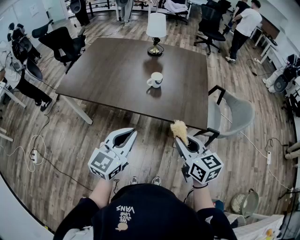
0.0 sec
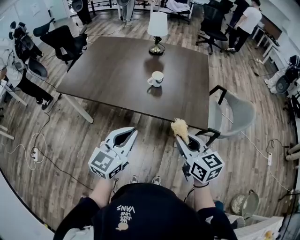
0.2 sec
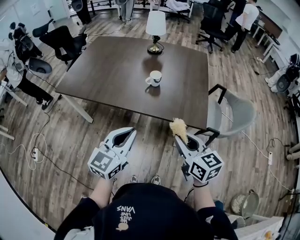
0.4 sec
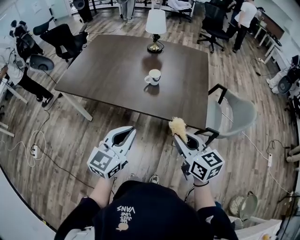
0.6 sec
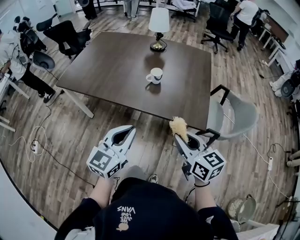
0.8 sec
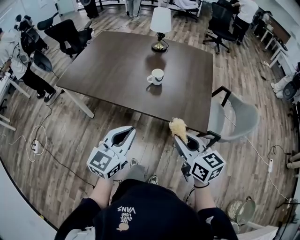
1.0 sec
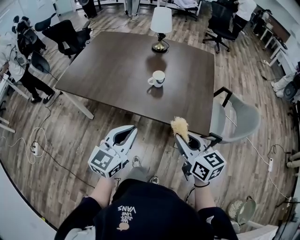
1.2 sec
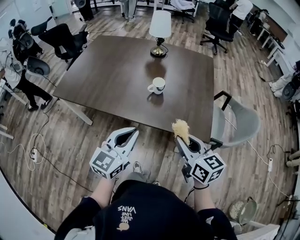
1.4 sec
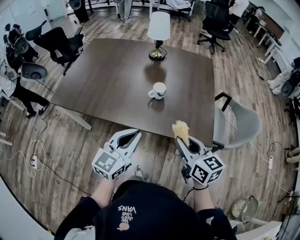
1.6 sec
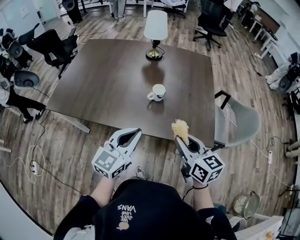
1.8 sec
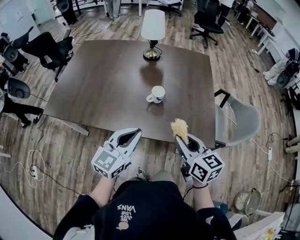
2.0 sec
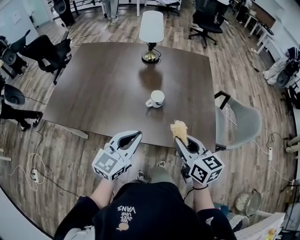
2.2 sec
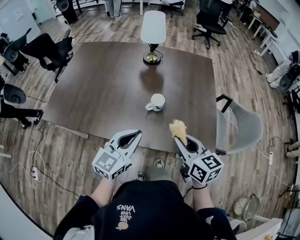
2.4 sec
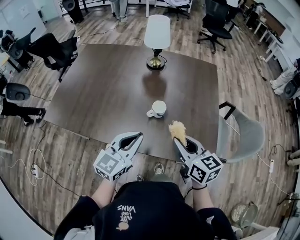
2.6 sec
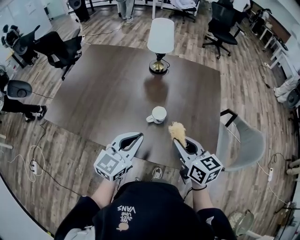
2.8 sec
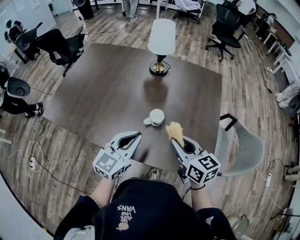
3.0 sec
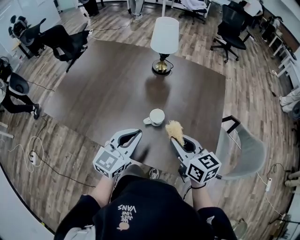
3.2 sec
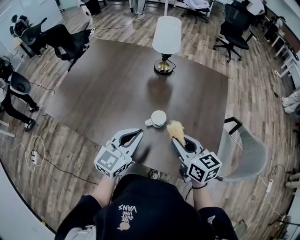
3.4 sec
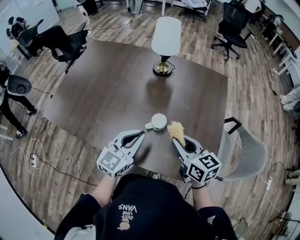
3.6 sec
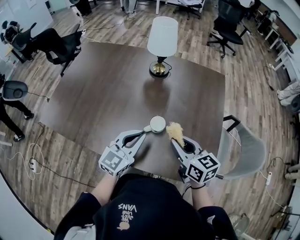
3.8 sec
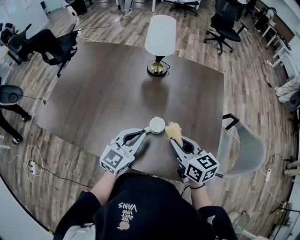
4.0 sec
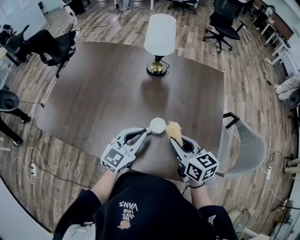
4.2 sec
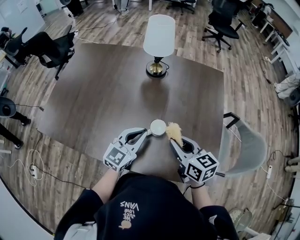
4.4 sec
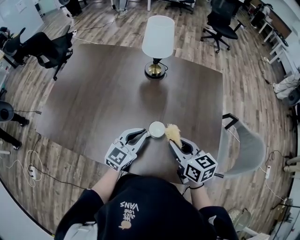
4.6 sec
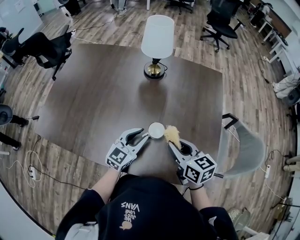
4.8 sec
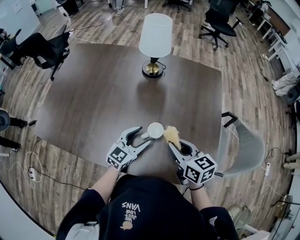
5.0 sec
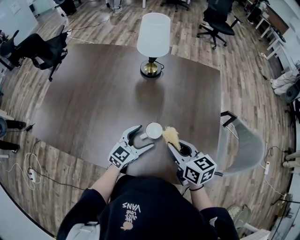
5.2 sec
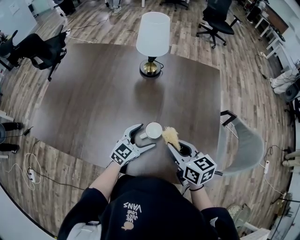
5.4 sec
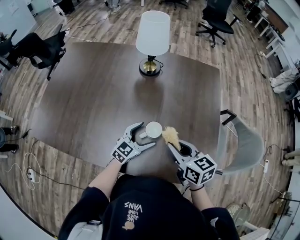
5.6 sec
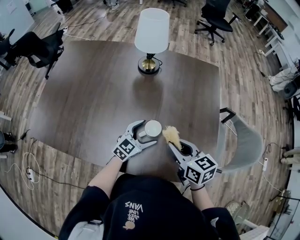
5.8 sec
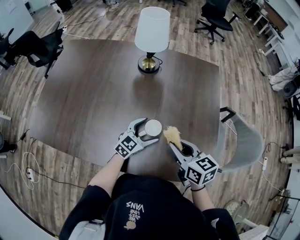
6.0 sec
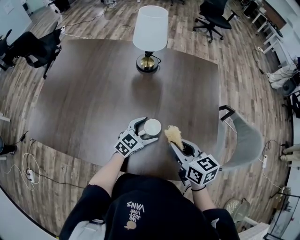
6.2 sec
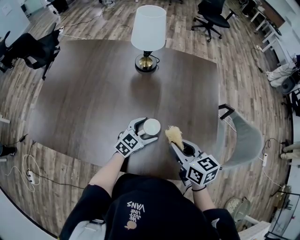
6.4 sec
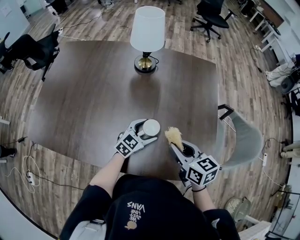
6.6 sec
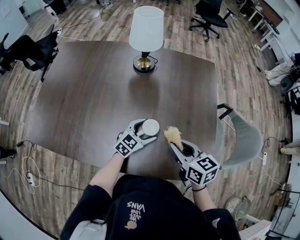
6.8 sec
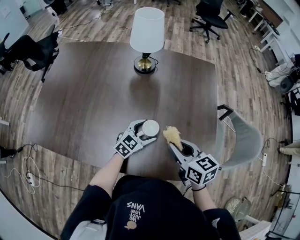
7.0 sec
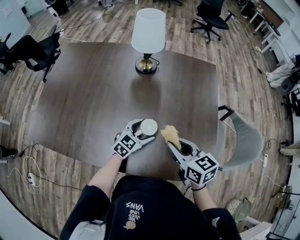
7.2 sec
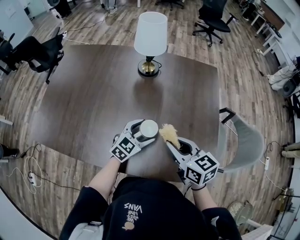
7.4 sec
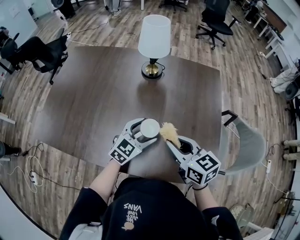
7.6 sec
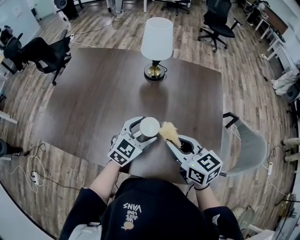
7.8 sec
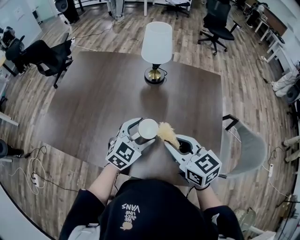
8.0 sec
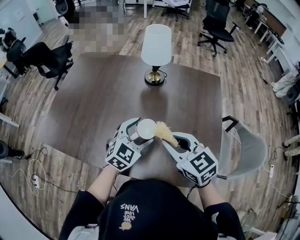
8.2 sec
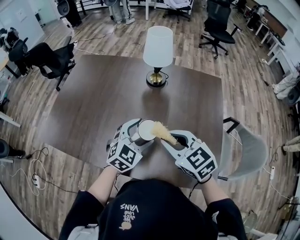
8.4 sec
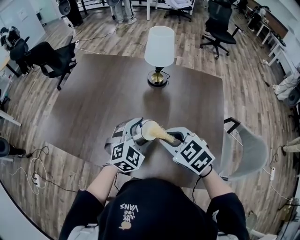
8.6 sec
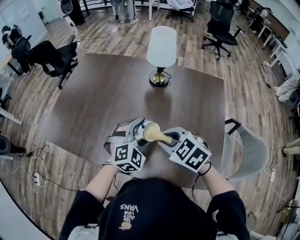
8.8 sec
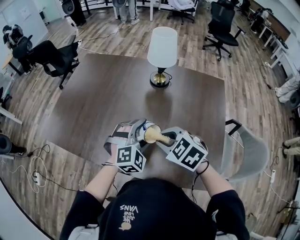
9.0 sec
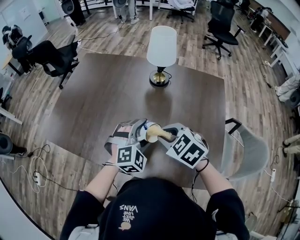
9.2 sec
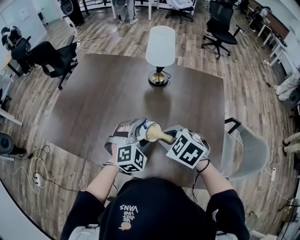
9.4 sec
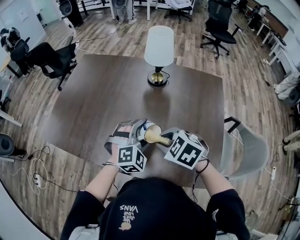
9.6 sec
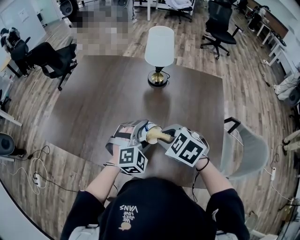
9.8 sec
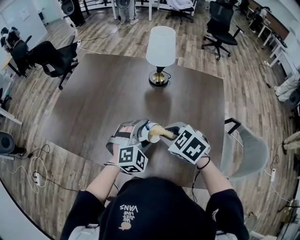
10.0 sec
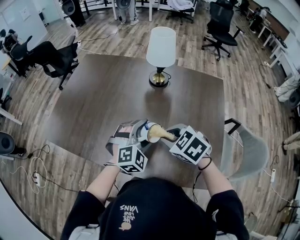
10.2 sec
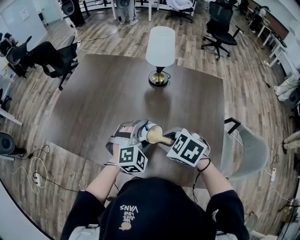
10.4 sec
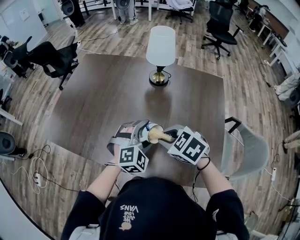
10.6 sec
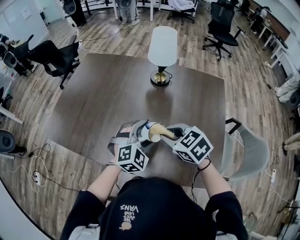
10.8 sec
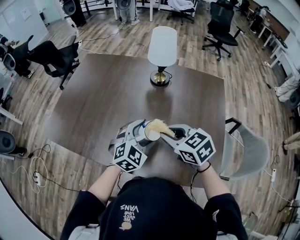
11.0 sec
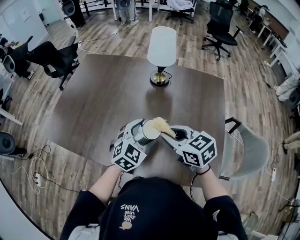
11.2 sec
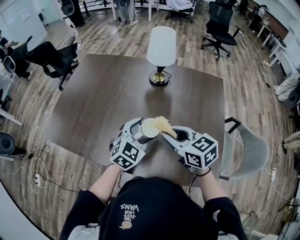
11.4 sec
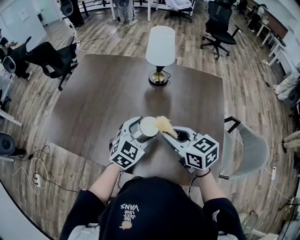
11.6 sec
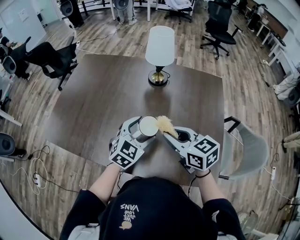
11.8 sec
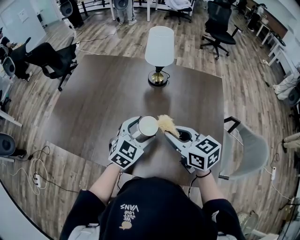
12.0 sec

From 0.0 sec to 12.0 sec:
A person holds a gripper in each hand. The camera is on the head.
From 0.0 sec to 1.6 sec: Both grippers move forward, about 15 cm.
From 1.6 sec to 3.0 sec: Both grippers travel together forward, about 20 cm.
From 3.0 sec to 4.4 sec: The left gripper shifts about 10 cm forward and downward. Meanwhile the right gripper goes roughly 10 cm forward.
From 4.4 sec to 6.0 sec: The left gripper shifts roughly 15 cm downward and to the right, and opens up.
From 6.0 sec to 7.6 sec: The right gripper travels upward by roughly 5 cm, while the left gripper goes some 10 cm upward.
From 7.6 sec to 9.0 sec: The right gripper moves to the left, roughly 5 cm, and rotates some 50 degrees. Meanwhile the left gripper ends up about 5 cm from where it was, and changes its angle by some 40 degrees.
From 9.0 sec to 10.4 sec: The grippers move only a little.
From 10.4 sec to 12.0 sec: The left gripper turns by about 30 degrees. Meanwhile the right gripper changes place by approximately 5 cm, and tips its fingers upward by roughly 30 degrees.

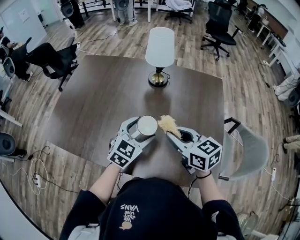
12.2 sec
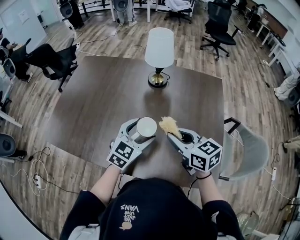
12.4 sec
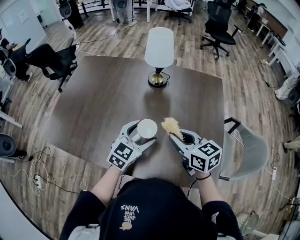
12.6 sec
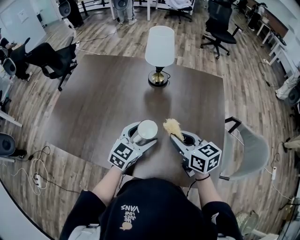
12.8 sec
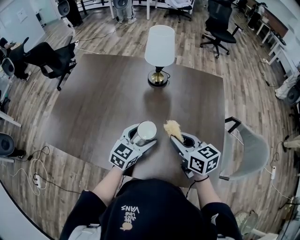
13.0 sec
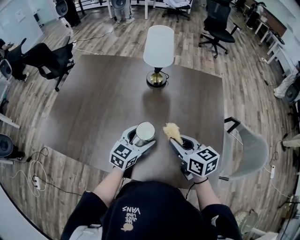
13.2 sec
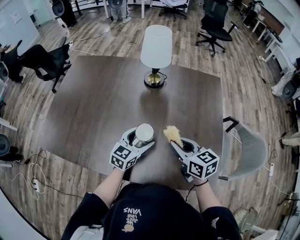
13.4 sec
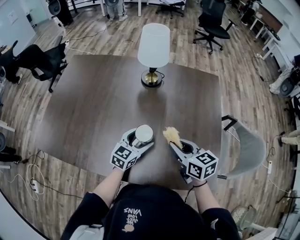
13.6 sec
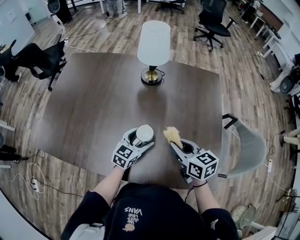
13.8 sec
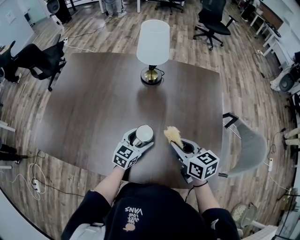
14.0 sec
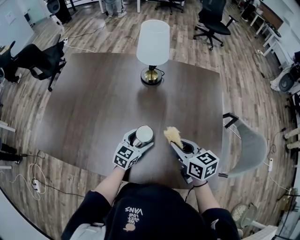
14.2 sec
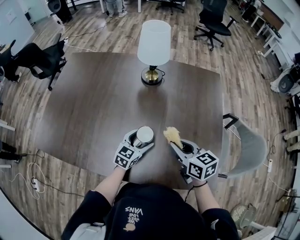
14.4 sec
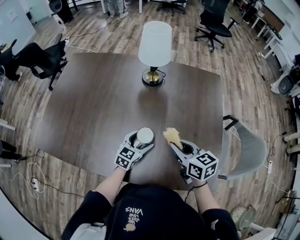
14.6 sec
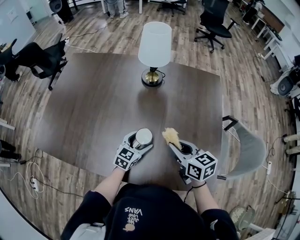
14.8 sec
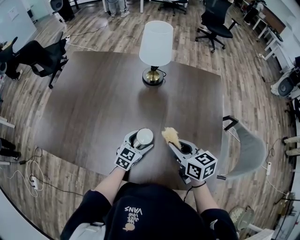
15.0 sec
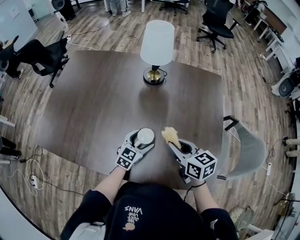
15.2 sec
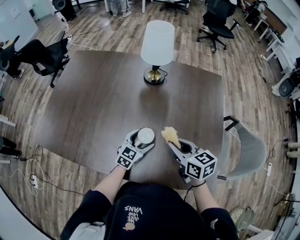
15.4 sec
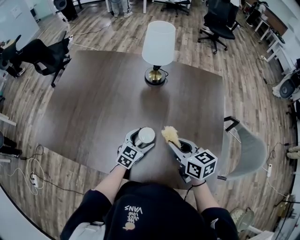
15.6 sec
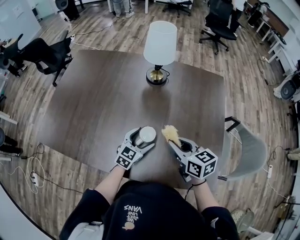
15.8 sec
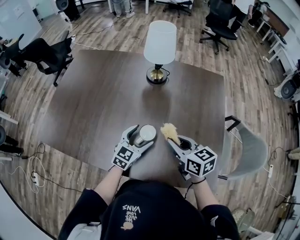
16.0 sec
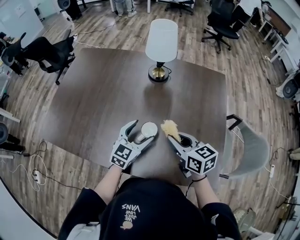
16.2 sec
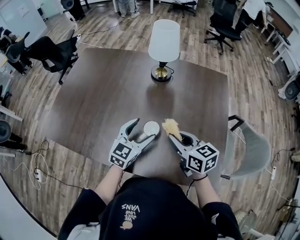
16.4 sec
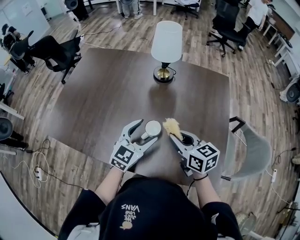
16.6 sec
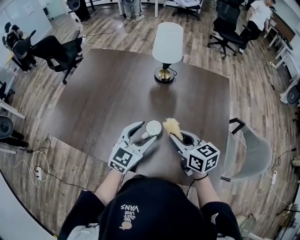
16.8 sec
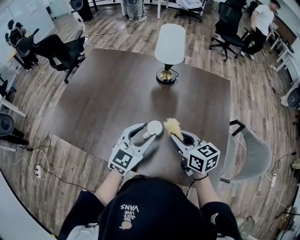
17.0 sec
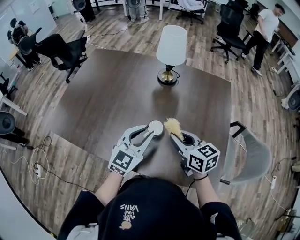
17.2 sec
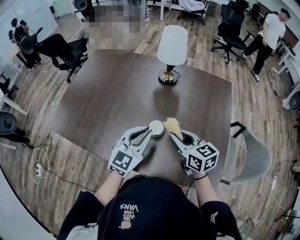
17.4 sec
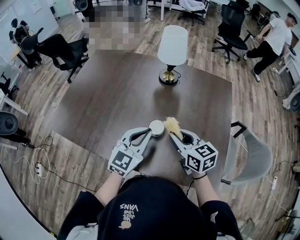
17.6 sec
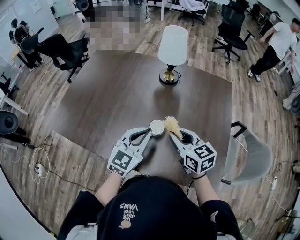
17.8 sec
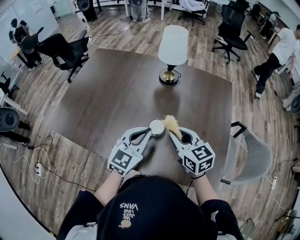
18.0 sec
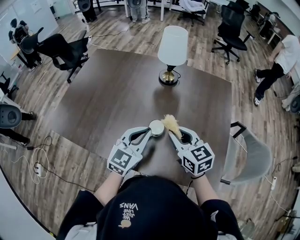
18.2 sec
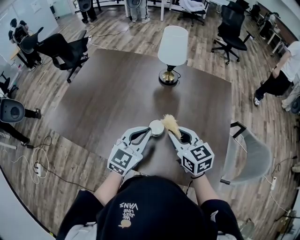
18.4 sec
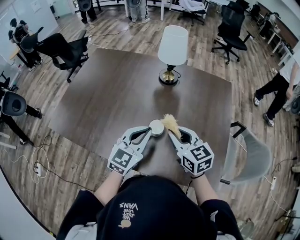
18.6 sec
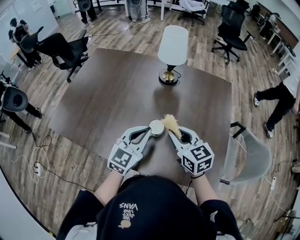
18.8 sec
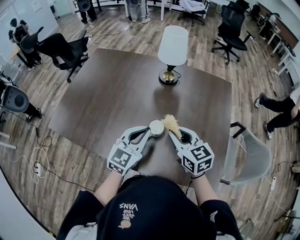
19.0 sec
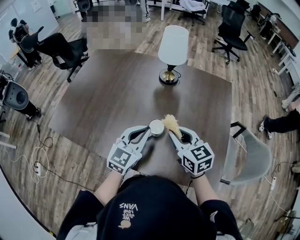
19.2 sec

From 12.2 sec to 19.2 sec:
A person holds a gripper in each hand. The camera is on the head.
From 12.2 sec to 13.6 sec: Both grippers travel together downward, about 10 cm. The left gripper turns by roughly 20 degrees.
From 13.6 sec to 15.0 sec: The left gripper moves downward, some 5 cm.
From 15.0 sec to 16.4 sec: The left gripper heads upward, covering roughly 10 cm.
From 16.4 sec to 17.8 sec: The left gripper travels upward by about 5 cm, and closes.
From 17.8 sec to 19.2 sec: The grippers move only a little.

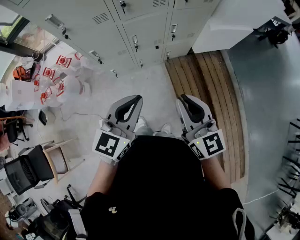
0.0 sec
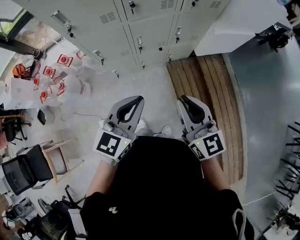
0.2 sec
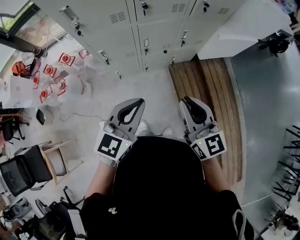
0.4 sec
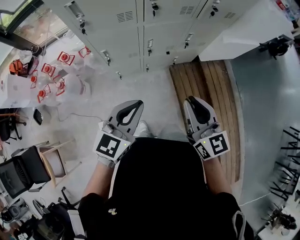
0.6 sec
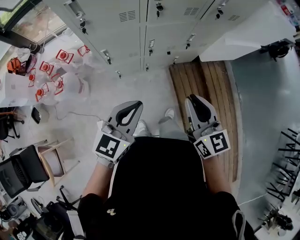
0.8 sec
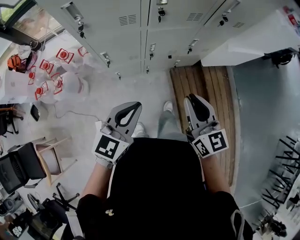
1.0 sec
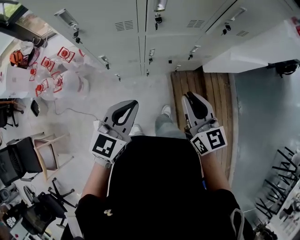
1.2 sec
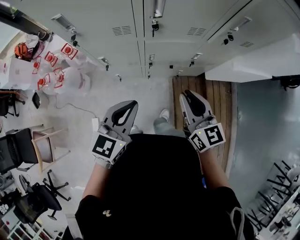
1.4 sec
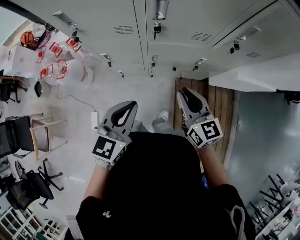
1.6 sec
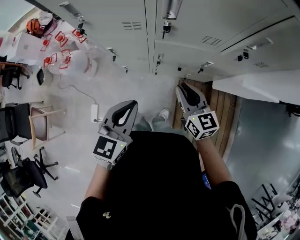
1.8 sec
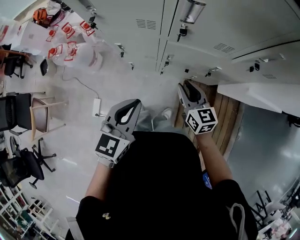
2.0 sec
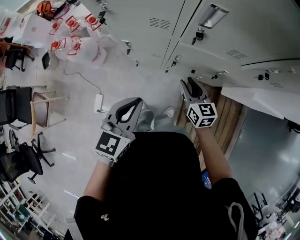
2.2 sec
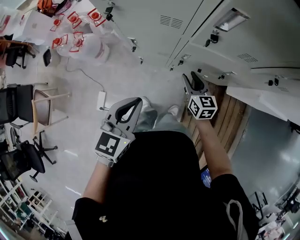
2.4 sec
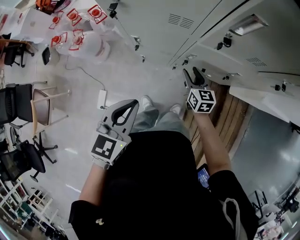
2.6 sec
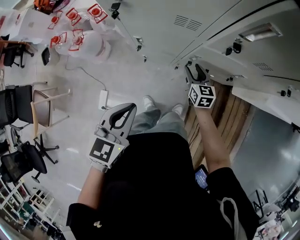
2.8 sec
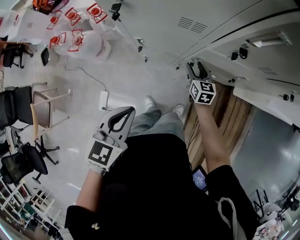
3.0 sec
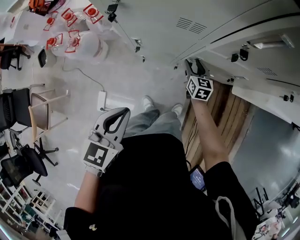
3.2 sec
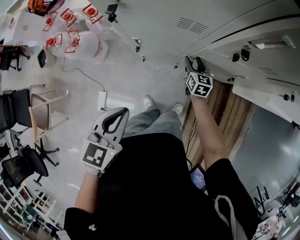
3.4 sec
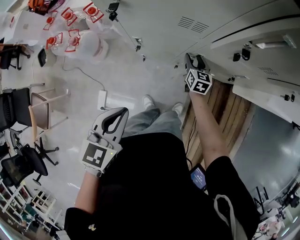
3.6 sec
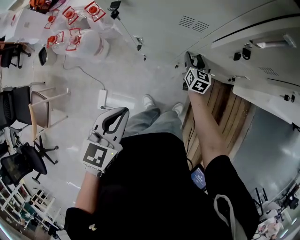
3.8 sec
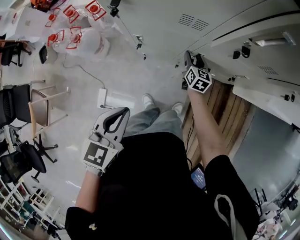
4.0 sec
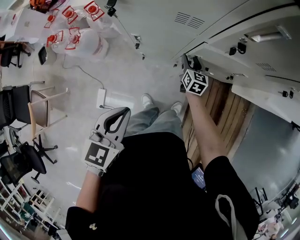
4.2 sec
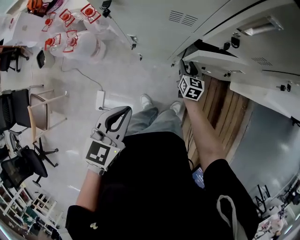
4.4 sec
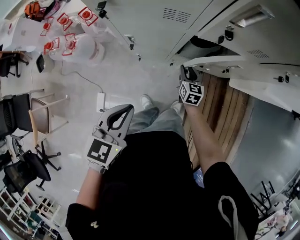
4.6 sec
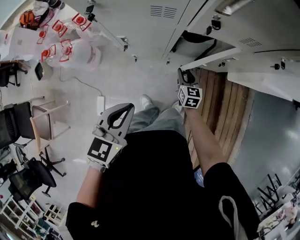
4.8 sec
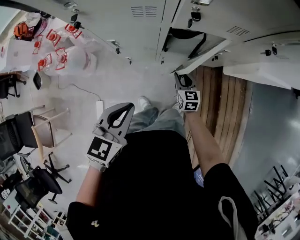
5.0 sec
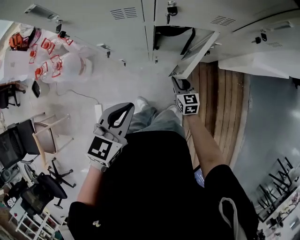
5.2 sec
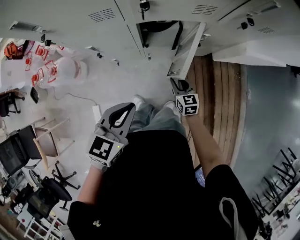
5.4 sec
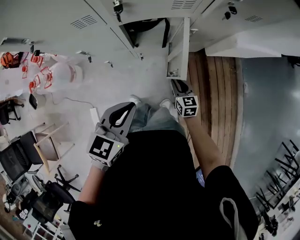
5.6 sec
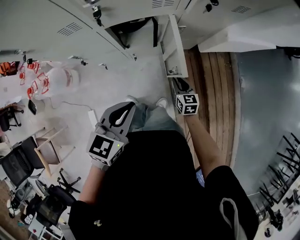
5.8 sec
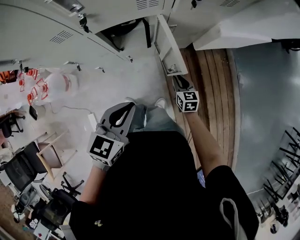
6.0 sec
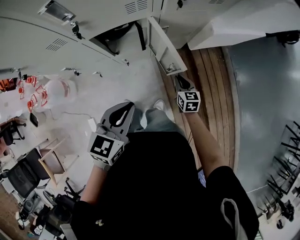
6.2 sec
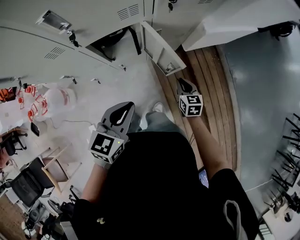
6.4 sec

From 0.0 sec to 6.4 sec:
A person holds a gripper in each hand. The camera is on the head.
From 0.0 sec to 1.6 sec: The right gripper heads forward, covering some 25 cm, and rotates some 20 degrees. Meanwhile the left gripper shifts approximately 15 cm forward, and swivels approximately 20 degrees.
From 1.6 sec to 3.2 sec: The left gripper is displaced to the left and downward by some 20 cm; the right gripper moves downward and forward, roughly 35 cm, changes its angle by some 20 degrees, and opens up.
From 3.2 sec to 4.8 sec: The left gripper is displaced to the right by roughly 5 cm; the right gripper travels backward by about 10 cm.
From 4.8 sec to 6.4 sec: Both grippers travel together to the right, roughly 25 cm. The left gripper rotates roughly 20 degrees.
